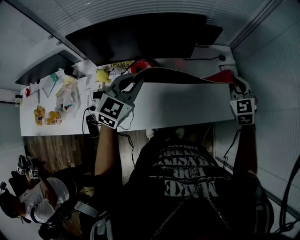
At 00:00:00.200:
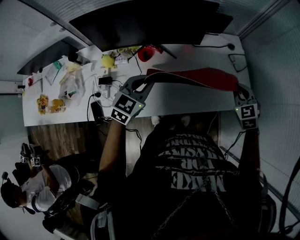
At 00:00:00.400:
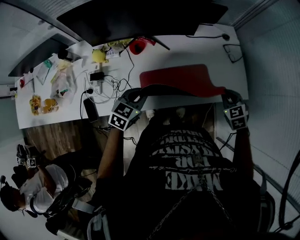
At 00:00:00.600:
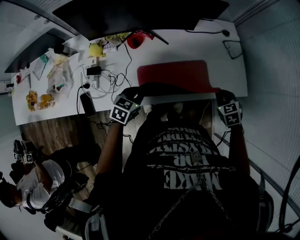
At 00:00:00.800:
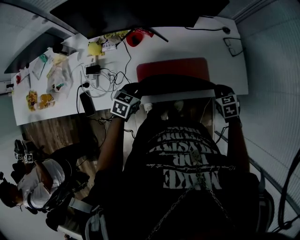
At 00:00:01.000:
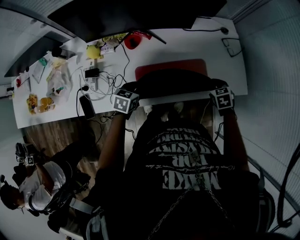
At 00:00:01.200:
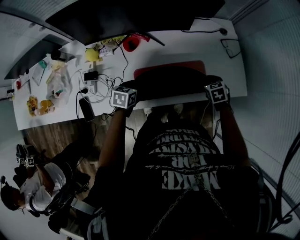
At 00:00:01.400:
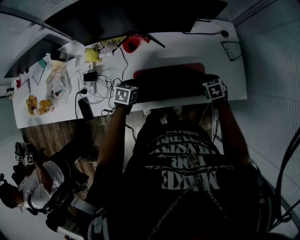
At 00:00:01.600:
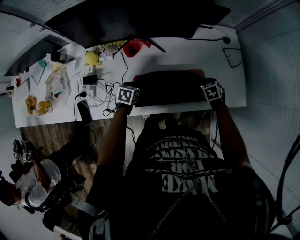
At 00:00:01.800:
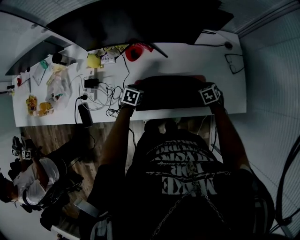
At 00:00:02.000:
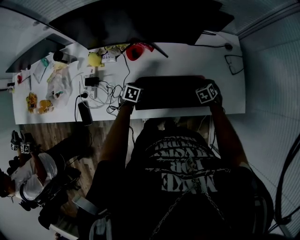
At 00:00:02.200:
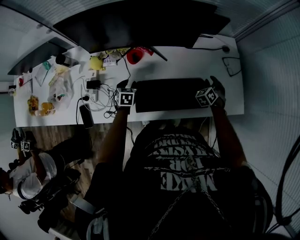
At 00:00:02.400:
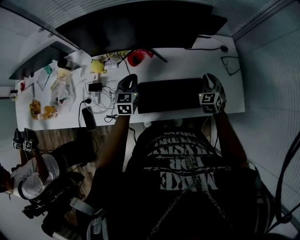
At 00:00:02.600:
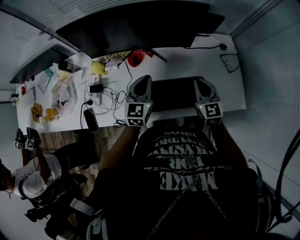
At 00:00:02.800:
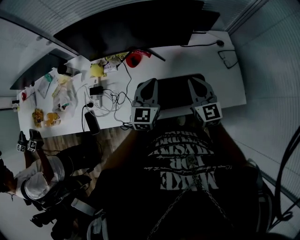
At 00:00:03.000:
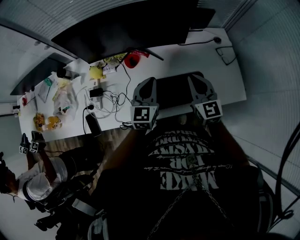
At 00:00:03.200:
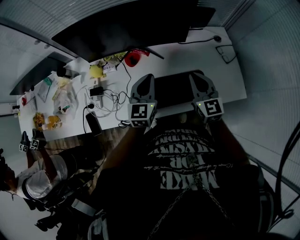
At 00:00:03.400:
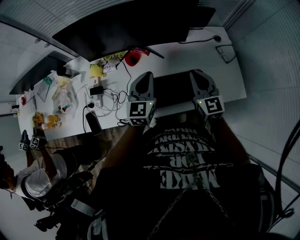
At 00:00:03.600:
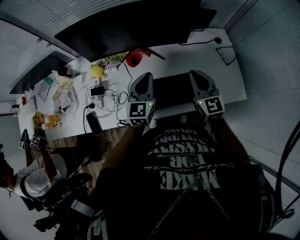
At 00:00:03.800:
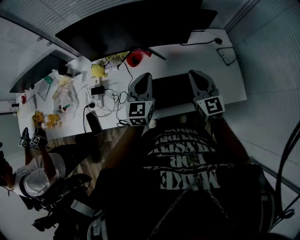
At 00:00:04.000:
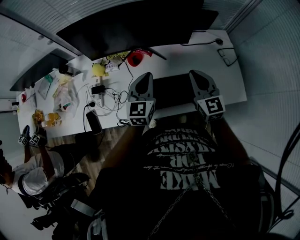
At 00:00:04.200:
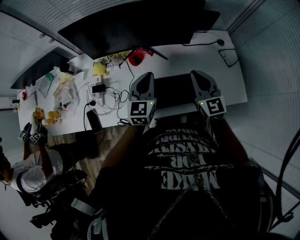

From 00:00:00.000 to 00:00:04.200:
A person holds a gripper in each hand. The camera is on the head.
From 00:00:00.000 to 00:00:01.400: Both grippers move downward, approximately 30 cm. The right gripper angles its fingers downward, by about 30 degrees, while the left gripper points its fingers approximately 30 degrees further downward.
From 00:00:01.400 to 00:00:02.800: The right gripper heads upward and to the left, covering some 25 cm, angles its fingers upward, by approximately 50 degrees, and opens and closes again; the left gripper moves upward, about 20 cm, tilts its fingers some 40 degrees upward, and opens and closes again.
From 00:00:02.800 to 00:00:04.200: There are only small adjustments of the grippers.

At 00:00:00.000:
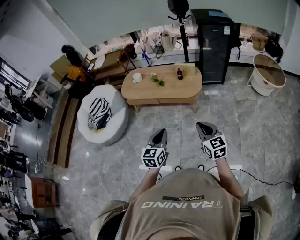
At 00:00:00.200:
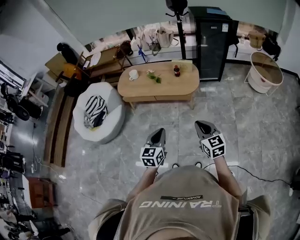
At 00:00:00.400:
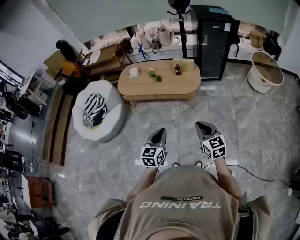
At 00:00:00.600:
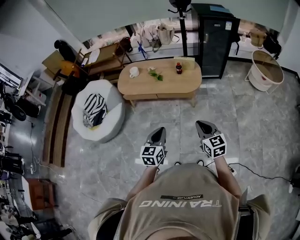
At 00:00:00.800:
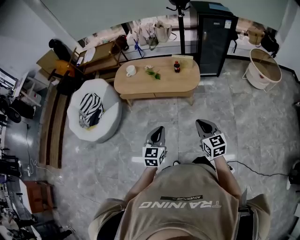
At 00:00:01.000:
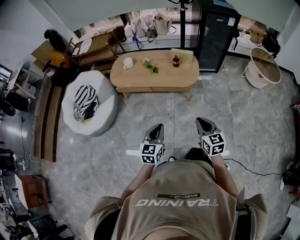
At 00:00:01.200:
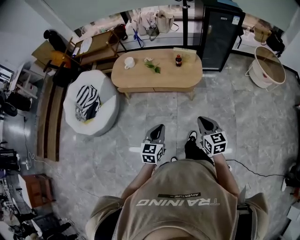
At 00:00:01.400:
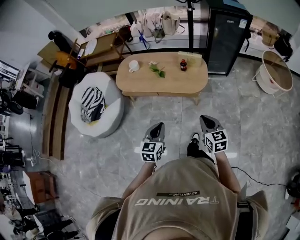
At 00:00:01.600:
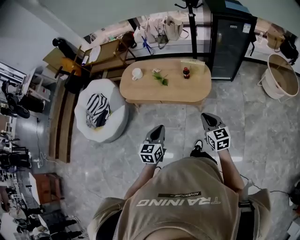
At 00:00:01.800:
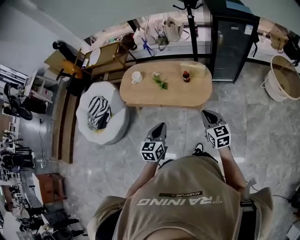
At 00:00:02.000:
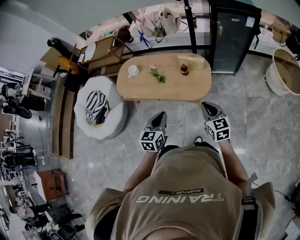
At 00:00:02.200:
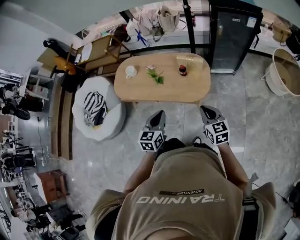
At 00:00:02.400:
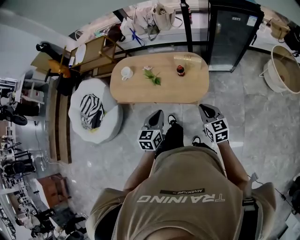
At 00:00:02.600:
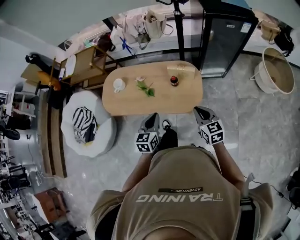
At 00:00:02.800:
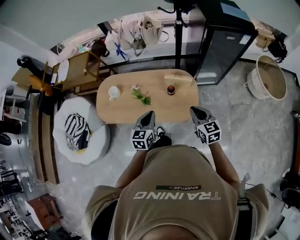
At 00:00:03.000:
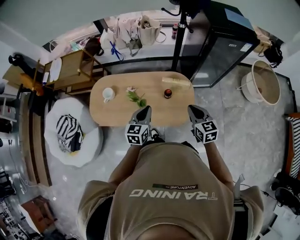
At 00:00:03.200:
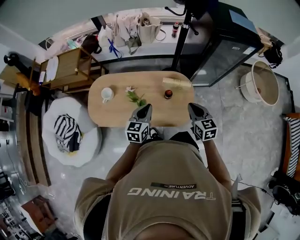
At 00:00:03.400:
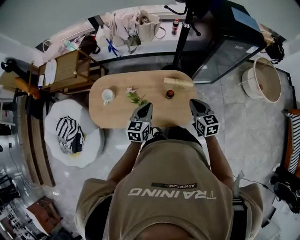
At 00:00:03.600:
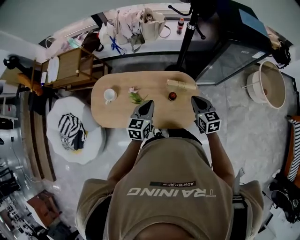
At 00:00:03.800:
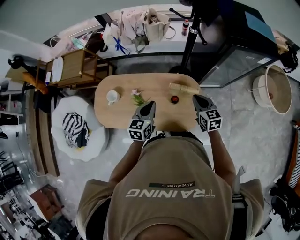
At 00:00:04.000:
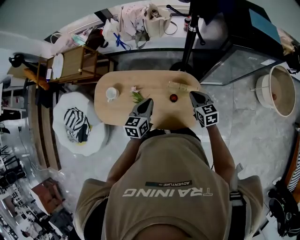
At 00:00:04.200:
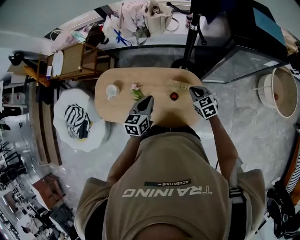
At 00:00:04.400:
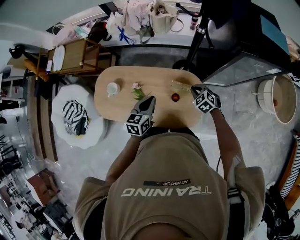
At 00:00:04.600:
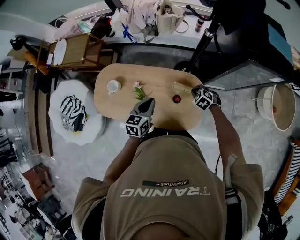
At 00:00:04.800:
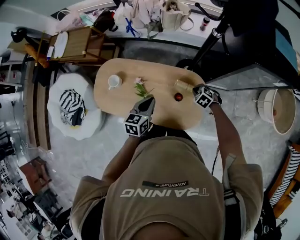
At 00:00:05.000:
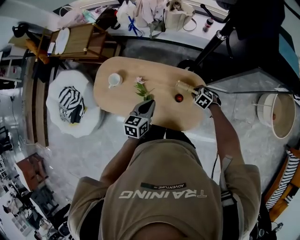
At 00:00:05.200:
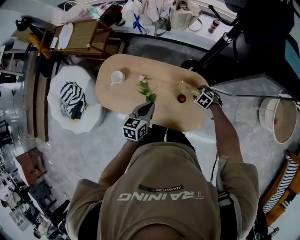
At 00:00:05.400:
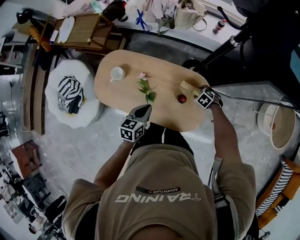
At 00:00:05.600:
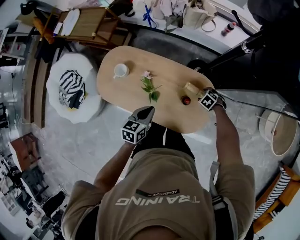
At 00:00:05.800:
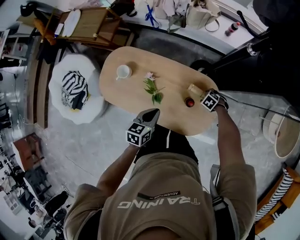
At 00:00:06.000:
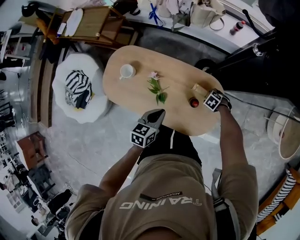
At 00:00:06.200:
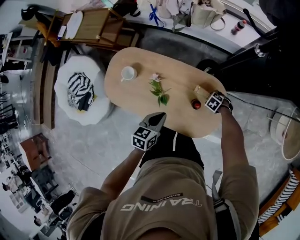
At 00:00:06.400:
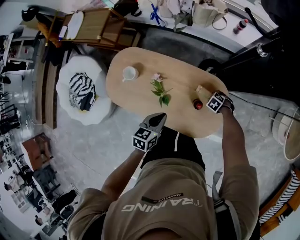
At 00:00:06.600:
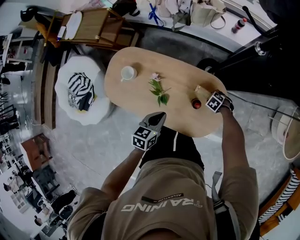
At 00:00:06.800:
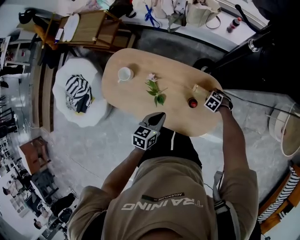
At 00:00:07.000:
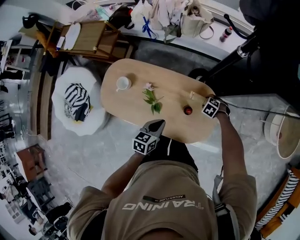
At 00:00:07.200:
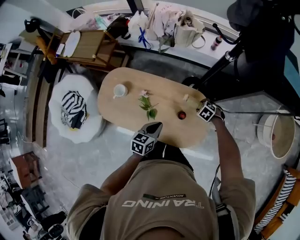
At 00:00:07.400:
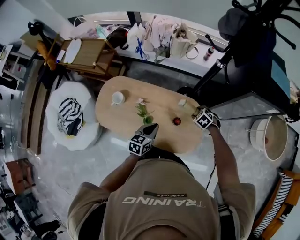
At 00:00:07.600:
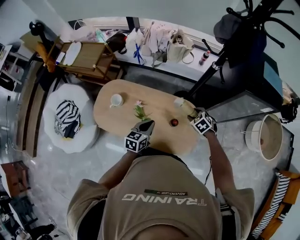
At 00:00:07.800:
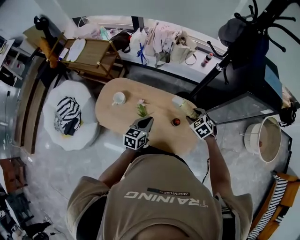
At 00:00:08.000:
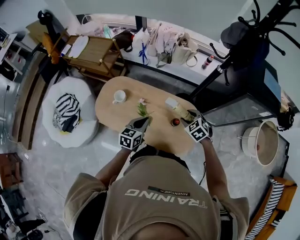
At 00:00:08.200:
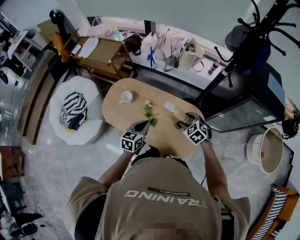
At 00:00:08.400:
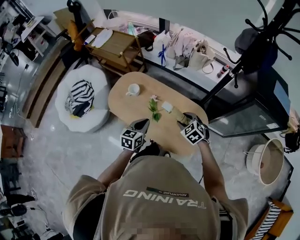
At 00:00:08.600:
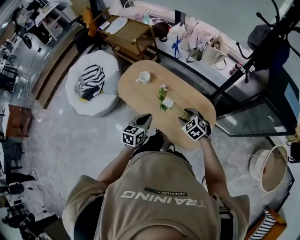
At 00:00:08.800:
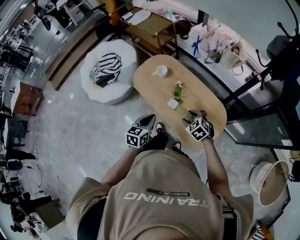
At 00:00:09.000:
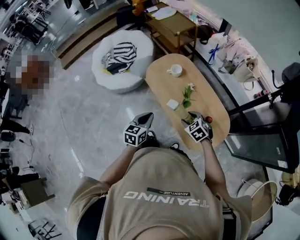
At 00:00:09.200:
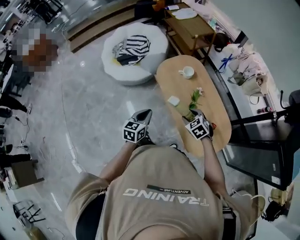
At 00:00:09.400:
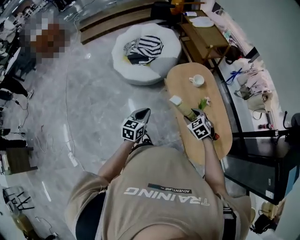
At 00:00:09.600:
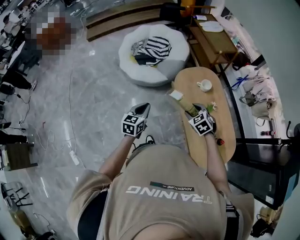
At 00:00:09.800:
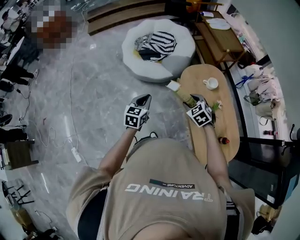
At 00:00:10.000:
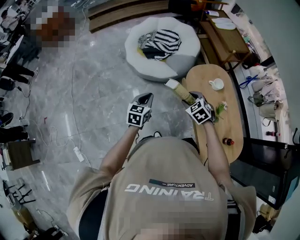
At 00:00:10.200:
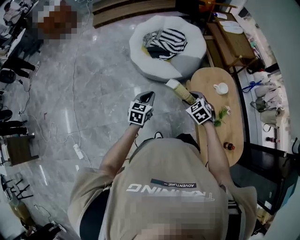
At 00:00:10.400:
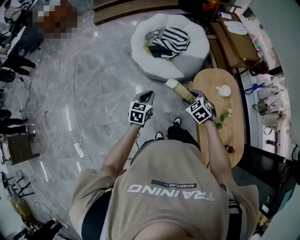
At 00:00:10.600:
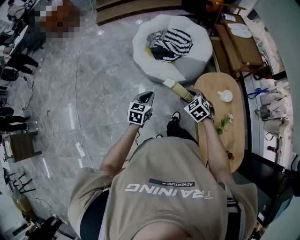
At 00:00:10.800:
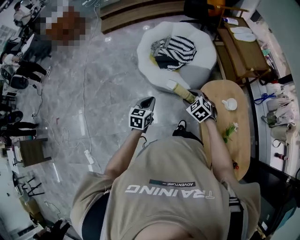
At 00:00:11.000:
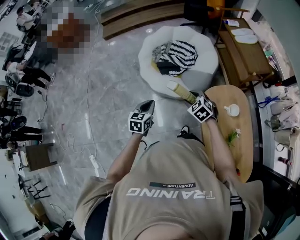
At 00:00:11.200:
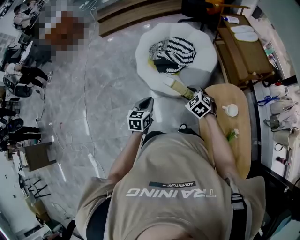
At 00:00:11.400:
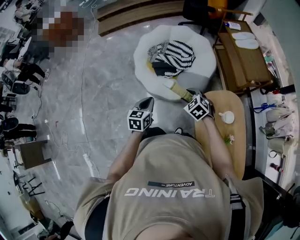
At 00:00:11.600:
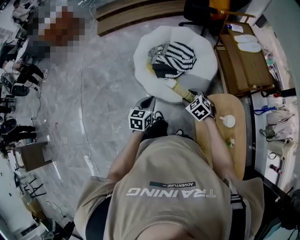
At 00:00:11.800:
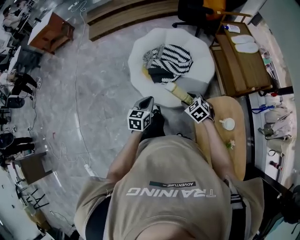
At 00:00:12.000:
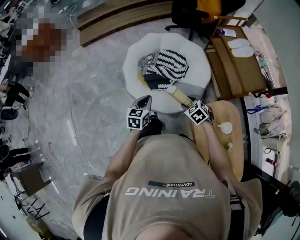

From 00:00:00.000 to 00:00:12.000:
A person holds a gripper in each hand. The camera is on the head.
From 00:00:00.000 to 00:00:01.600: Both grippers travel together forward, approximately 20 cm.
From 00:00:01.600 to 00:00:03.000: Both grippers travel together forward, approximately 35 cm.
From 00:00:03.000 to 00:00:04.400: The left gripper travels forward by approximately 15 cm. The right gripper is displaced forward and downward by roughly 30 cm, and turns by roughly 50 degrees.
From 00:00:04.400 to 00:00:06.000: The right gripper moves downward, about 20 cm, swivels roughly 30 degrees, and opens. The left gripper heads downward, covering about 10 cm.
From 00:00:06.000 to 00:00:07.600: The right gripper goes about 25 cm upward, and swivels about 30 degrees; the left gripper goes some 5 cm upward.
From 00:00:07.600 to 00:00:09.000: The left gripper moves roughly 30 cm, and turns by approximately 40 degrees. Meanwhile the right gripper shifts by some 30 cm, and changes its angle by approximately 40 degrees.
From 00:00:09.000 to 00:00:10.400: The two grippers go about 40 cm to the left and forward. The left gripper changes its angle by about 20 degrees. Meanwhile the right gripper rotates some 30 degrees.
From 00:00:10.400 to 00:00:12.000: Both grippers move forward, about 35 cm.

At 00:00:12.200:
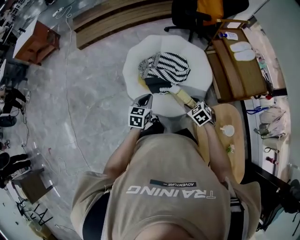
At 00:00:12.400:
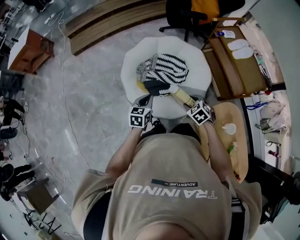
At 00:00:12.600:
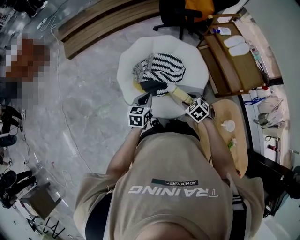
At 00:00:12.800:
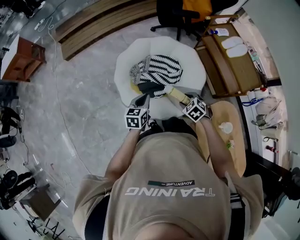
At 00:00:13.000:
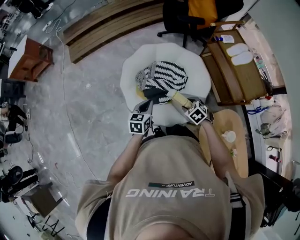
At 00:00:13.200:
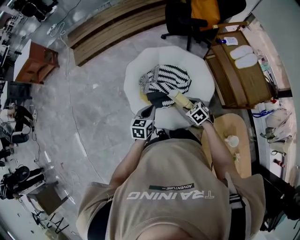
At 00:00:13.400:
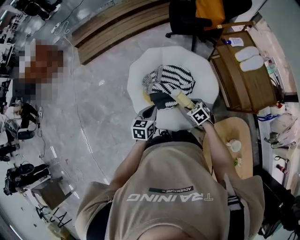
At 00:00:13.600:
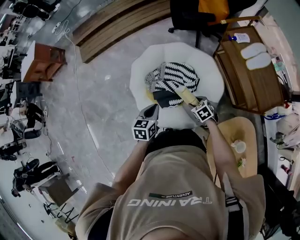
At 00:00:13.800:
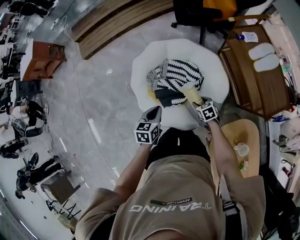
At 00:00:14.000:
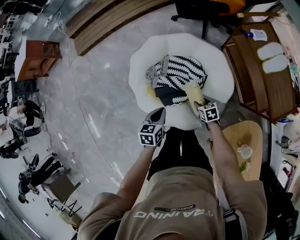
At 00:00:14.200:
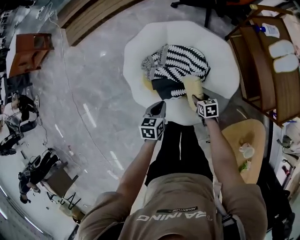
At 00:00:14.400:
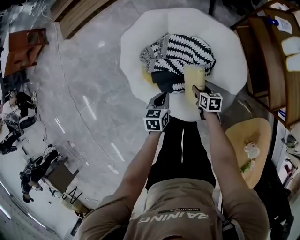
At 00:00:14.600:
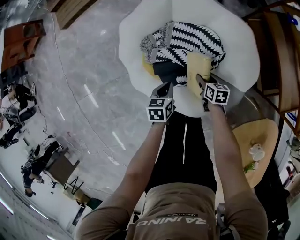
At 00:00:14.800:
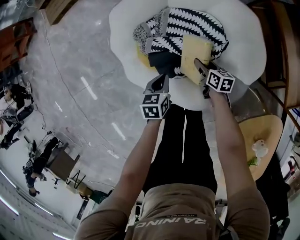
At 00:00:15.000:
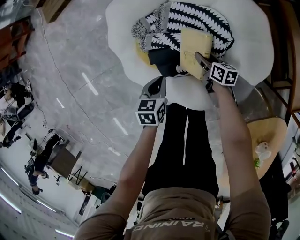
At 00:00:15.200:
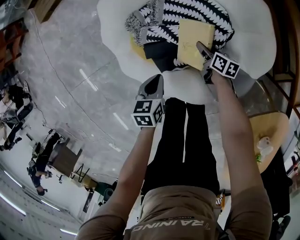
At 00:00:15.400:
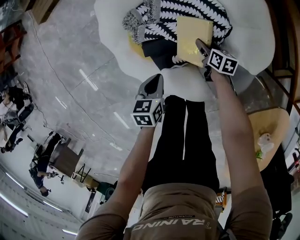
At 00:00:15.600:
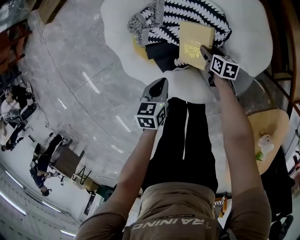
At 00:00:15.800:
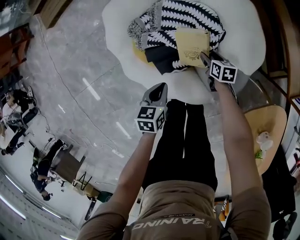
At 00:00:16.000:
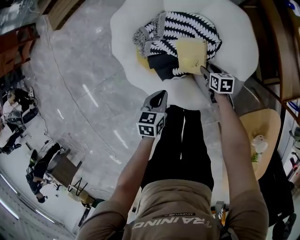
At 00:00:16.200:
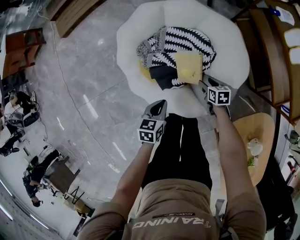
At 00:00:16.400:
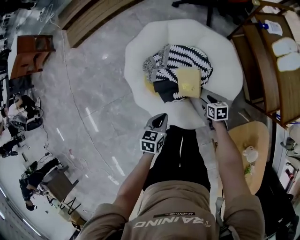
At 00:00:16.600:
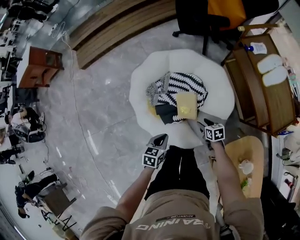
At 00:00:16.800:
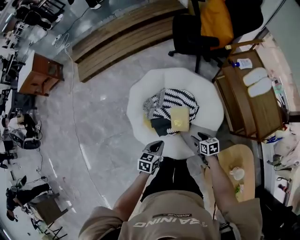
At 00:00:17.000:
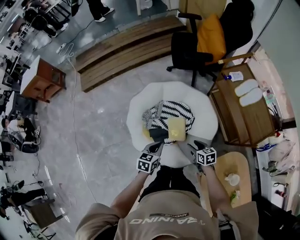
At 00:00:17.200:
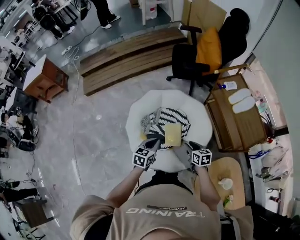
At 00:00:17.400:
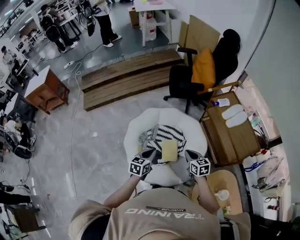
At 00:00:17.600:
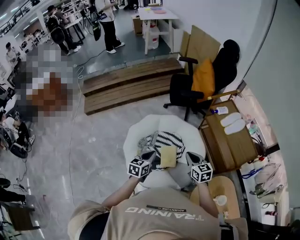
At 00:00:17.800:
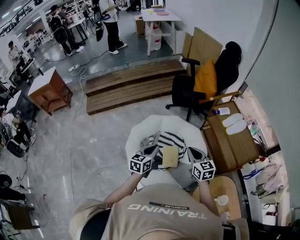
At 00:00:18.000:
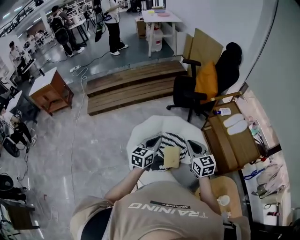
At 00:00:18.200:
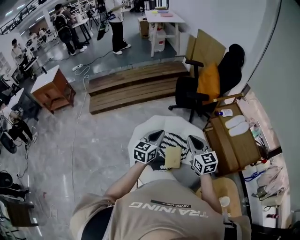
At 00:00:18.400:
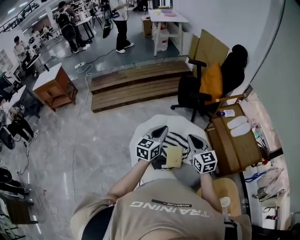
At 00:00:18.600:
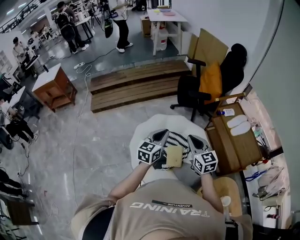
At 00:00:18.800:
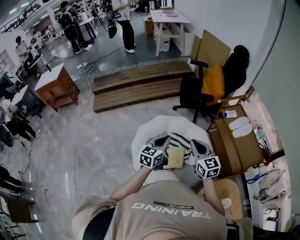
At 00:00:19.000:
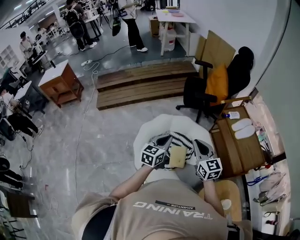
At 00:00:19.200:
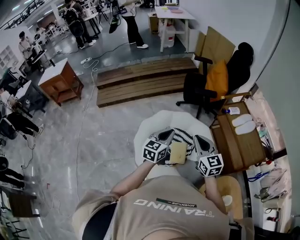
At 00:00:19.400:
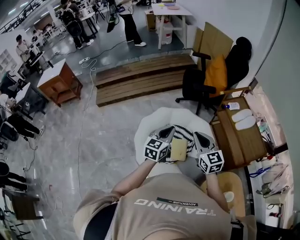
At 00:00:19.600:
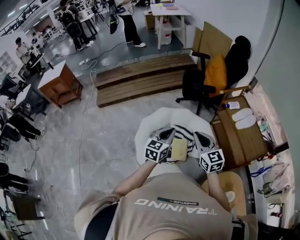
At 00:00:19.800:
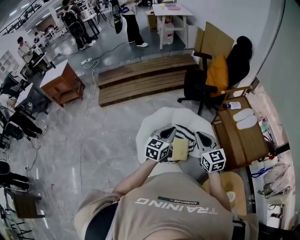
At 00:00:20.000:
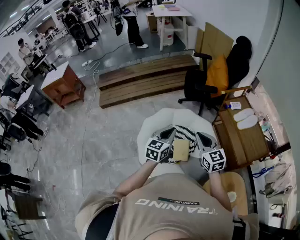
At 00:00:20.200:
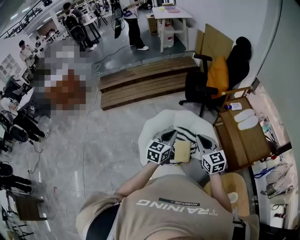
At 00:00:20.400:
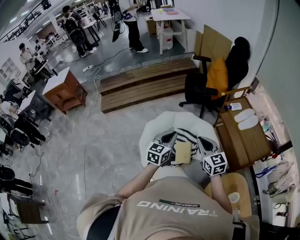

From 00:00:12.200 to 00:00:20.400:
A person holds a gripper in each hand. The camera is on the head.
From 00:00:12.200 to 00:00:13.800: The left gripper moves forward and to the right, about 15 cm. The right gripper shifts some 25 cm forward and downward, and changes its angle by about 30 degrees.
From 00:00:13.800 to 00:00:15.400: Both grippers move downward, about 35 cm. The right gripper twists some 40 degrees clockwise, seen from behind.
From 00:00:15.400 to 00:00:17.200: The two grippers go about 40 cm upward. The left gripper turns by about 30 degrees. Meanwhile the right gripper swivels about 30 degrees.
From 00:00:17.200 to 00:00:18.800: The left gripper is displaced upward by approximately 15 cm, and rotates roughly 20 degrees. Meanwhile the right gripper shifts about 25 cm upward, turns by some 40 degrees, and closes.
From 00:00:18.800 to 00:00:20.400: The grippers move only a little.
